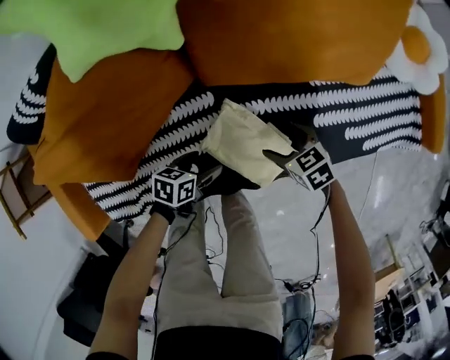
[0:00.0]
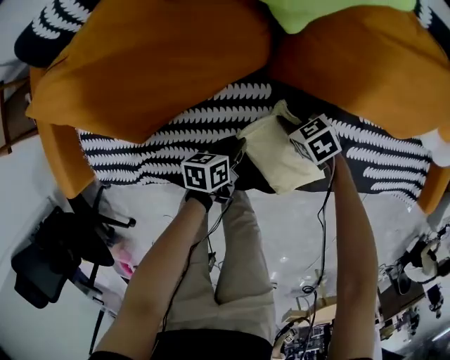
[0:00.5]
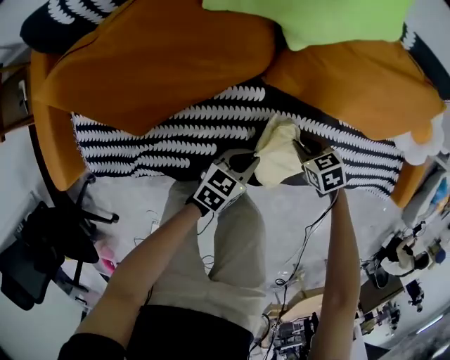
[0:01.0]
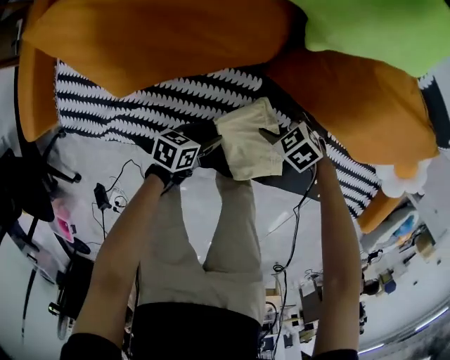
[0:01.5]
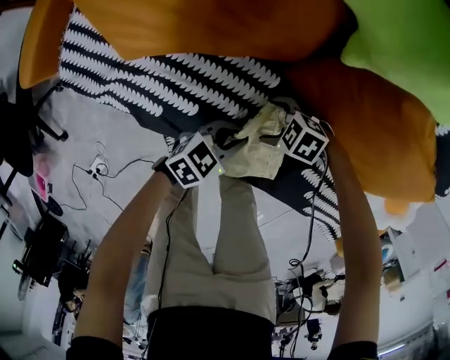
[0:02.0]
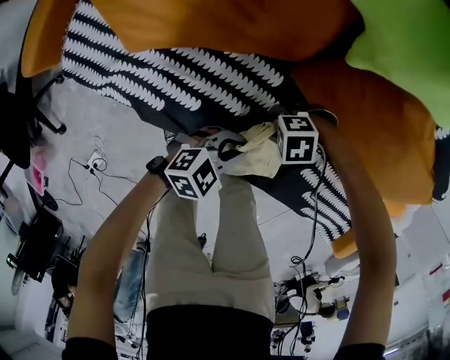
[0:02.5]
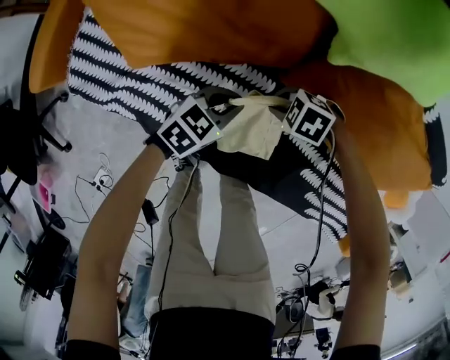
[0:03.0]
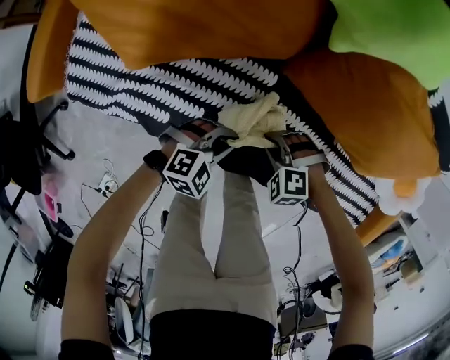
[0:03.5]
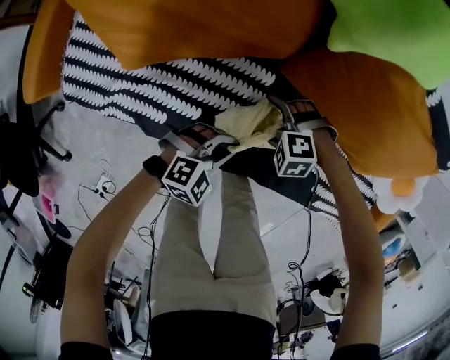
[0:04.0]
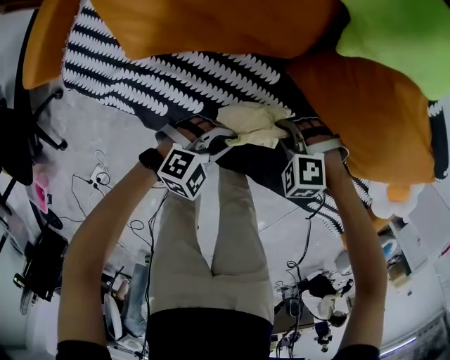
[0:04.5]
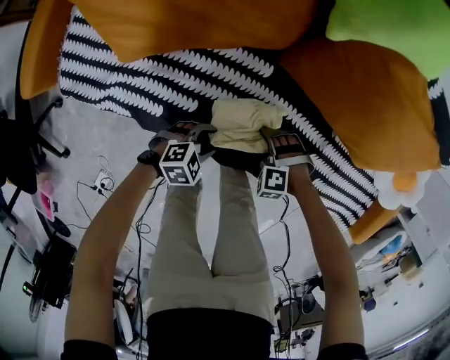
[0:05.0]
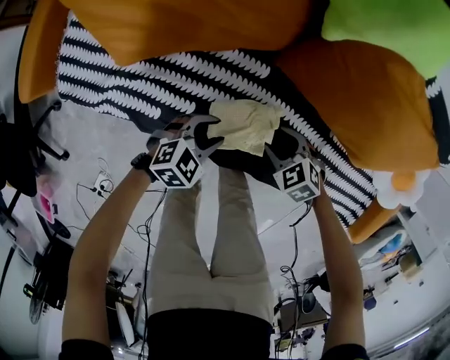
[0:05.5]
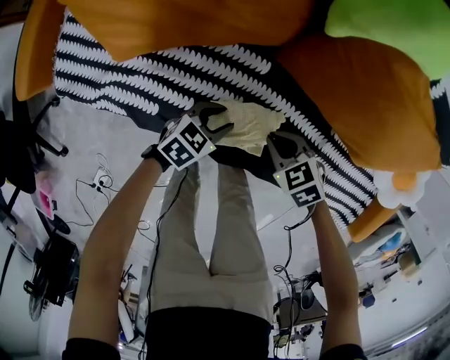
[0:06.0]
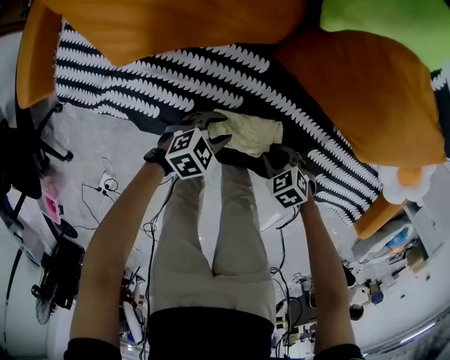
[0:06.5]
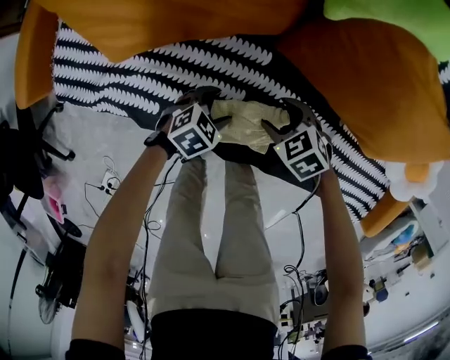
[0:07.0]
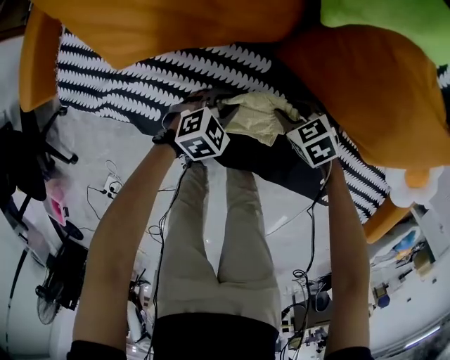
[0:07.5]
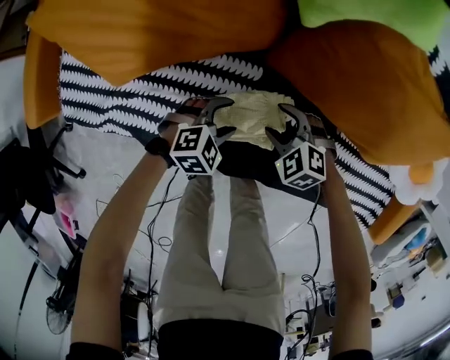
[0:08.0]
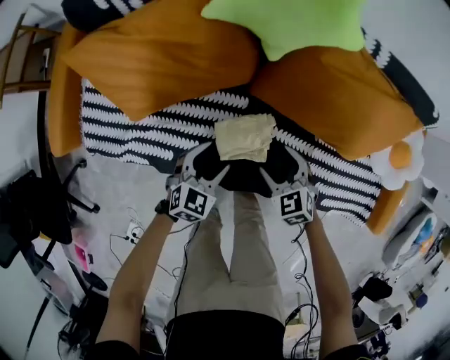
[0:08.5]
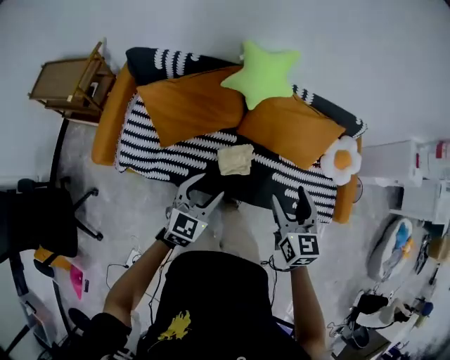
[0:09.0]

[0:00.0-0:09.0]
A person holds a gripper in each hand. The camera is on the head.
0:00.0 to 0:02.0: The right gripper travels upward and back again, roughly 5 cm each way, turns by roughly 80 degrees, and closes and opens again; the left gripper moves up and down over about 10 cm, changing direction 2 times, swivels approximately 30 degrees, and closes up.
0:02.0 to 0:04.5: The left gripper rotates around the line of its fingers by approximately 40 degrees, clockwise from behind. The right gripper is displaced upward by about 10 cm, turns by approximately 40 degrees, and closes up.
0:04.5 to 0:07.0: The right gripper swings up and down, about 10 cm each way, with 2 reversals, rolls clockwise, seen from behind, by approximately 50 degrees, and opens its fingers, while the left gripper swings up and down, roughly 10 cm each way, with 2 reversals, swivels about 30 degrees, and opens its fingers.
0:07.0 to 0:09.0: The grippers both shift upward by roughly 60 cm. The right gripper angles its fingers upward, by roughly 50 degrees; the left gripper points its fingers roughly 40 degrees further upward, and closes, then reopens.

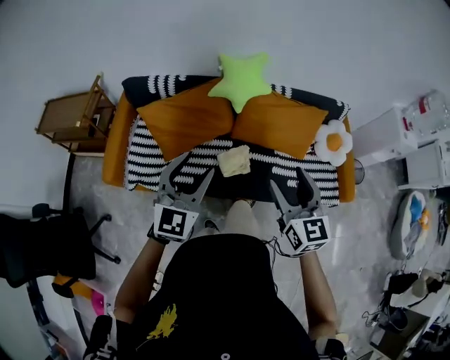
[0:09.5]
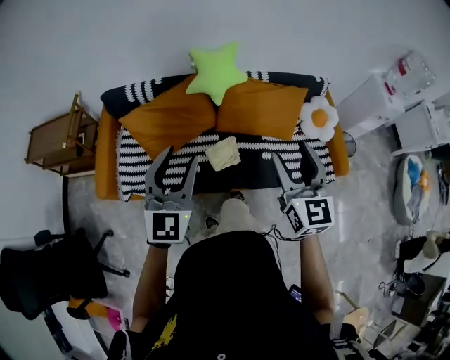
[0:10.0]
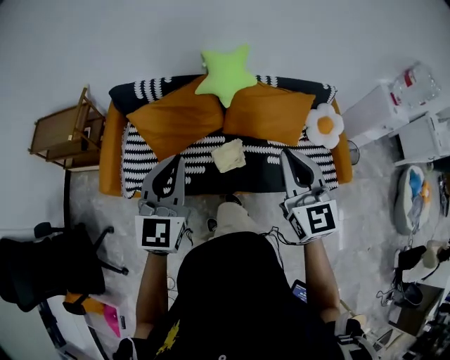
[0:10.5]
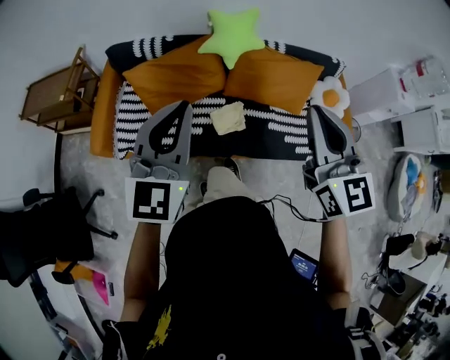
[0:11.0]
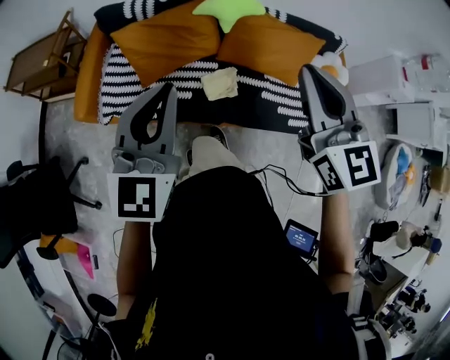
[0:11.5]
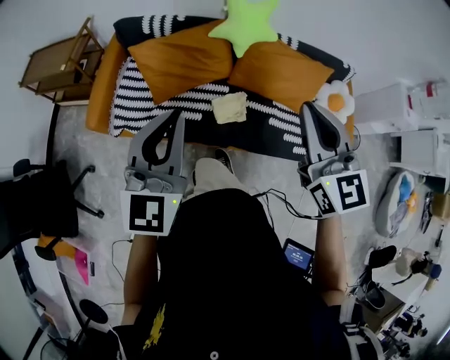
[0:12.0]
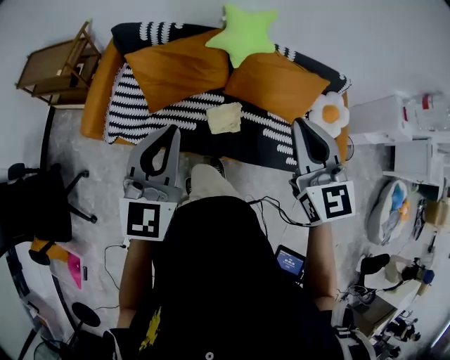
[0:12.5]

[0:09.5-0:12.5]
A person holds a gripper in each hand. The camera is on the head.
0:09.5 to 0:11.0: The left gripper is displaced upward by approximately 5 cm, and closes its fingers; the right gripper travels upward by approximately 10 cm, and closes.
0:11.0 to 0:12.5: Both grippers move downward, roughly 5 cm.

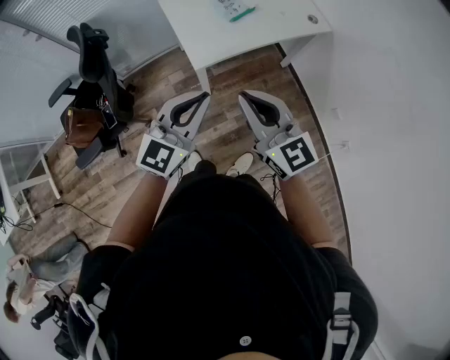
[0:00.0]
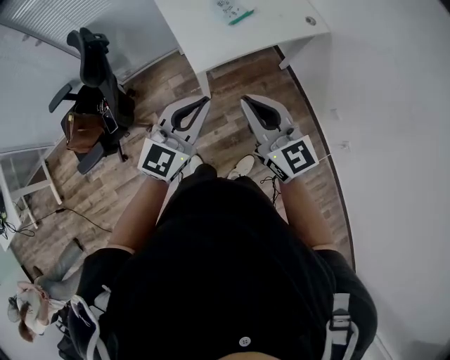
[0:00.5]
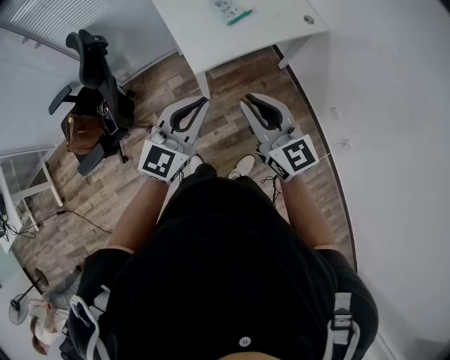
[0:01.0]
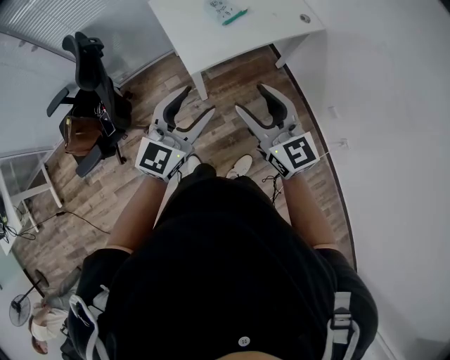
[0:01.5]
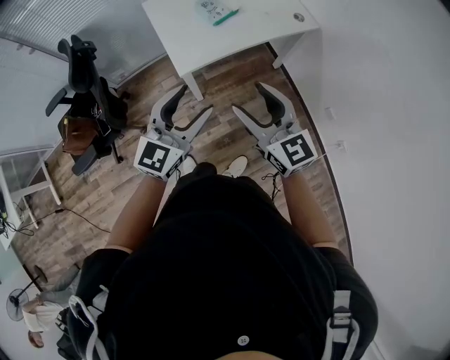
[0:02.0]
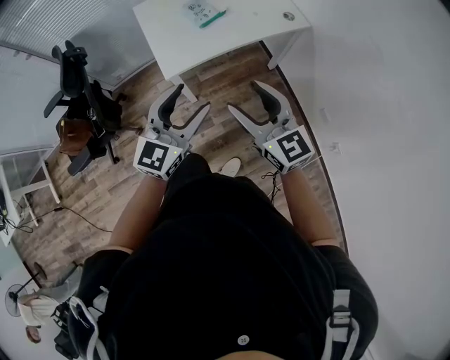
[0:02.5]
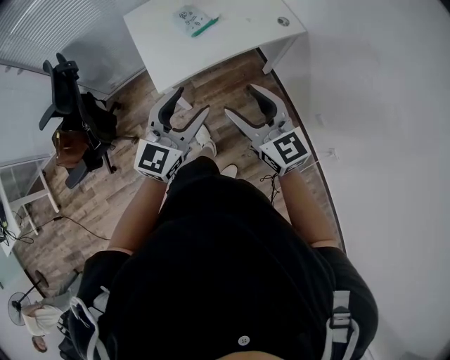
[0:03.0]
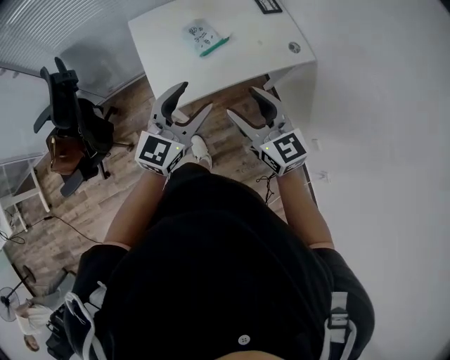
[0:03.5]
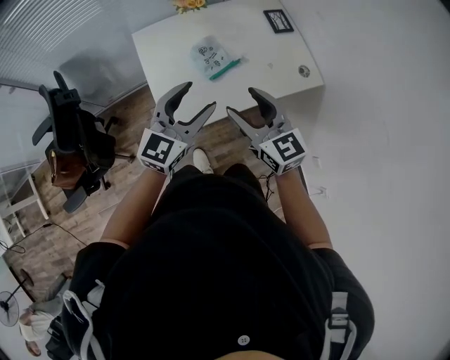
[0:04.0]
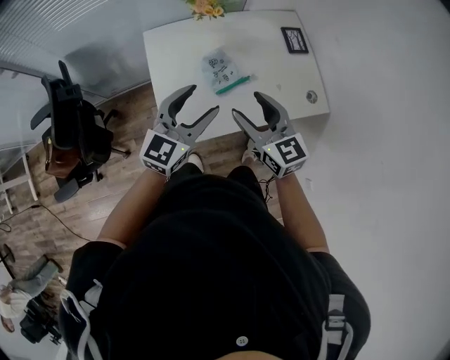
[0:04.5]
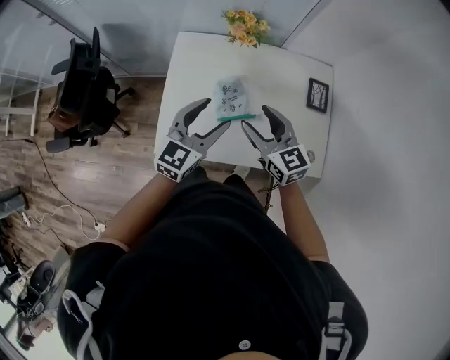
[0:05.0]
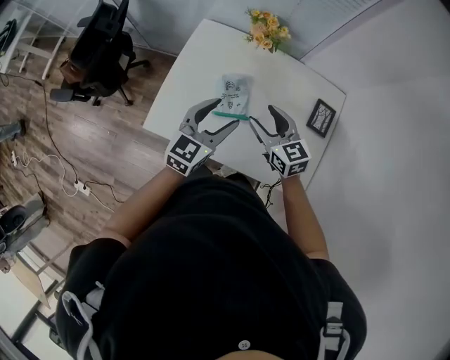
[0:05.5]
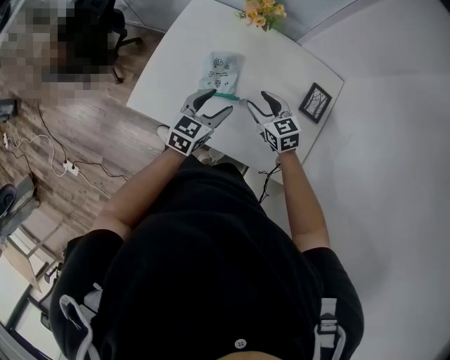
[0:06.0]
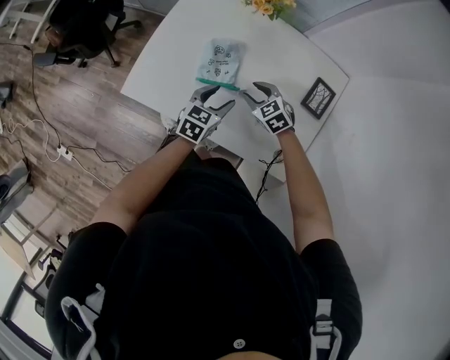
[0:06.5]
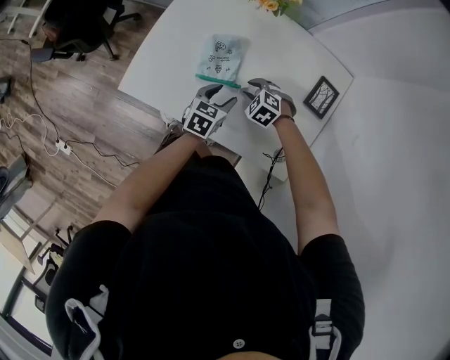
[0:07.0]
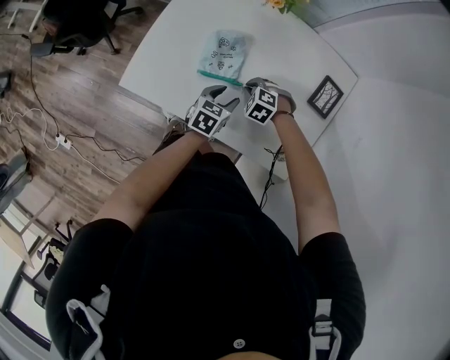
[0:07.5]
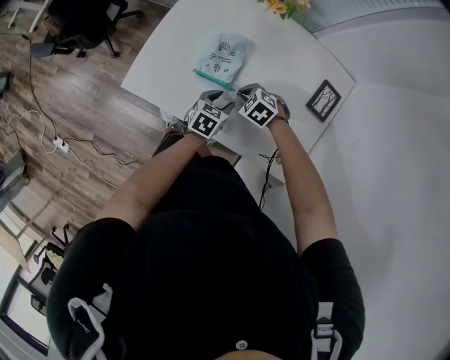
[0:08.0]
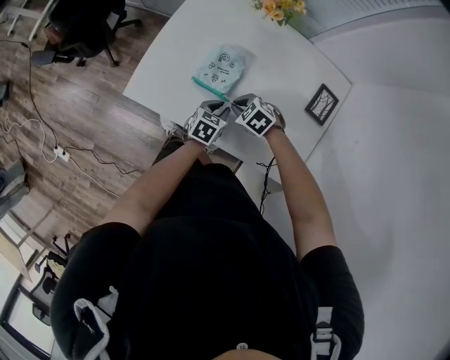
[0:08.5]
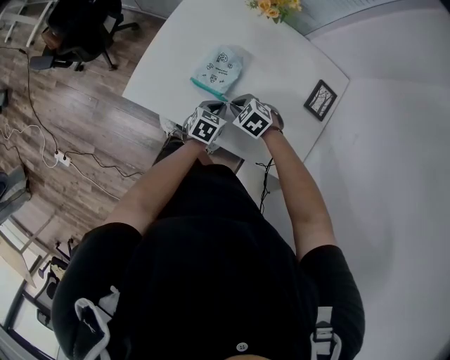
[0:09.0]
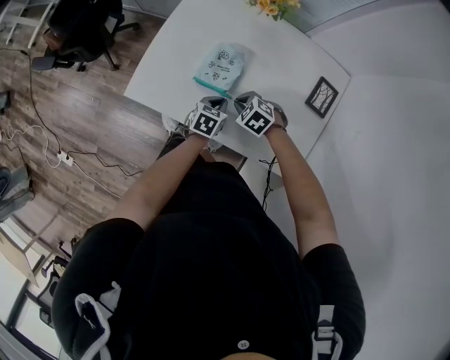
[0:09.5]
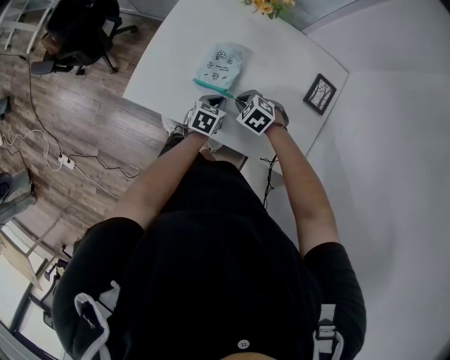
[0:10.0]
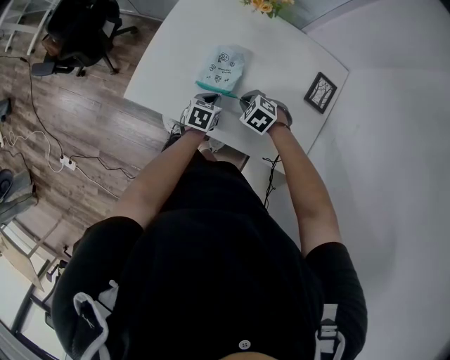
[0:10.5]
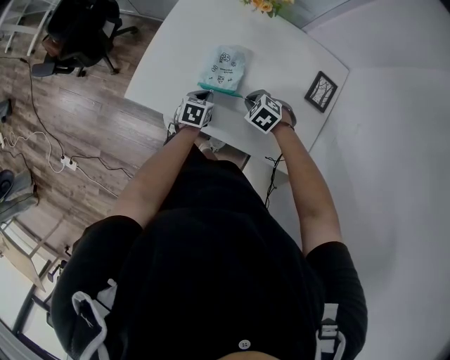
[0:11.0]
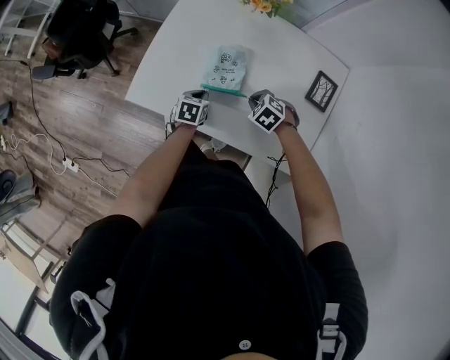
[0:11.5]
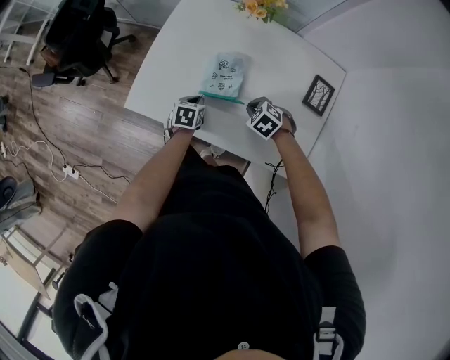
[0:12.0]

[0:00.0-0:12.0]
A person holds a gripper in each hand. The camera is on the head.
0:00.0 to 0:02.0: Both grippers move to the right, some 10 cm. The left gripper opens up, while the right gripper opens its fingers.
0:02.0 to 0:04.0: The two grippers go approximately 30 cm forward.
0:04.0 to 0:06.0: The left gripper ends up some 30 cm from where it was, and swivels approximately 50 degrees; the right gripper moves roughly 40 cm, and turns by about 50 degrees.
0:06.0 to 0:08.0: The right gripper is displaced downward and to the left by some 15 cm, angles its fingers downward, by about 30 degrees, and closes up. Meanwhile the left gripper moves downward, about 15 cm, and rotates roughly 20 degrees.
0:08.0 to 0:10.0: The left gripper closes its fingers.
0:10.0 to 0:12.0: The left gripper is displaced to the left by approximately 10 cm.

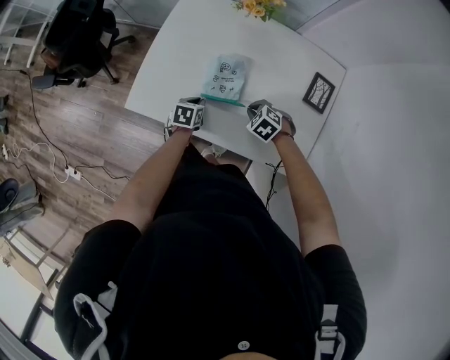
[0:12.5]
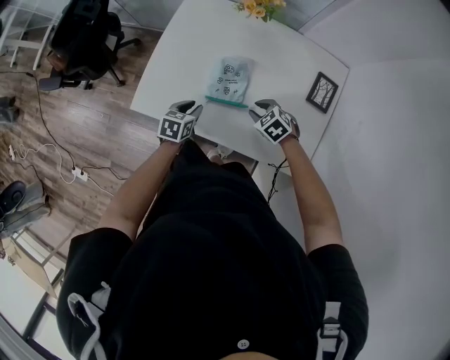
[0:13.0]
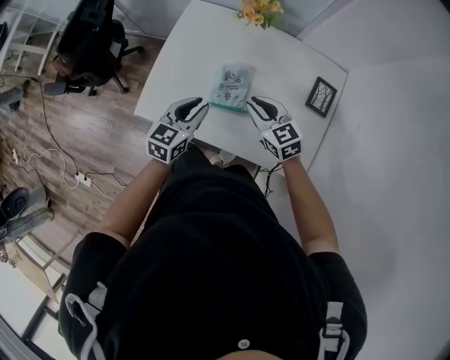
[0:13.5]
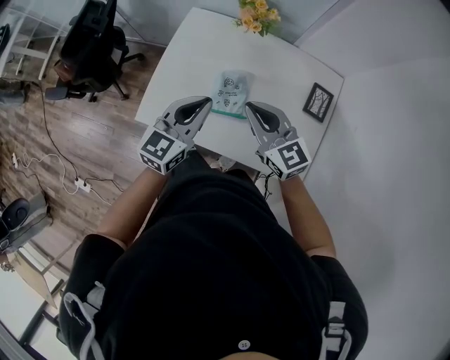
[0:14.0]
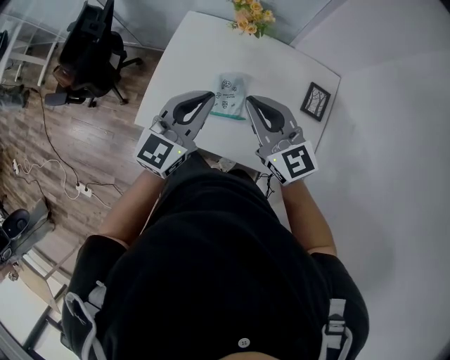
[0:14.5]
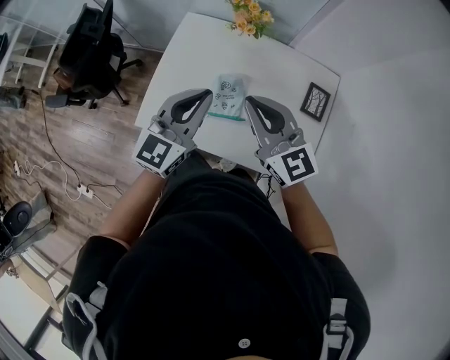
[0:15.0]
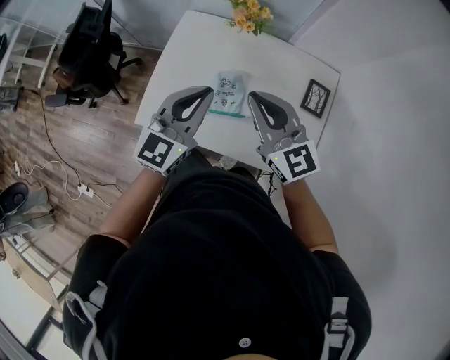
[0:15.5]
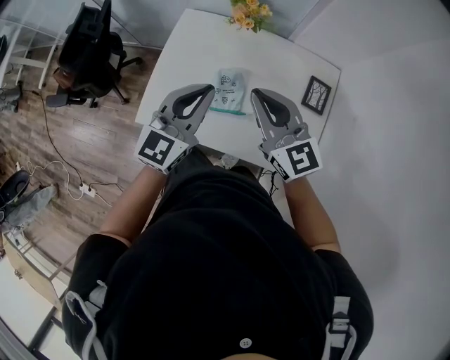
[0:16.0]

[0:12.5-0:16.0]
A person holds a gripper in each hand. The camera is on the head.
0:12.5 to 0:14.5: Both grippers travel together upward, approximately 40 cm. The right gripper tips its fingers upward by some 70 degrees. Meanwhile the left gripper tips its fingers upward by roughly 50 degrees.
0:14.5 to 0:16.0: The grippers move only a little.
